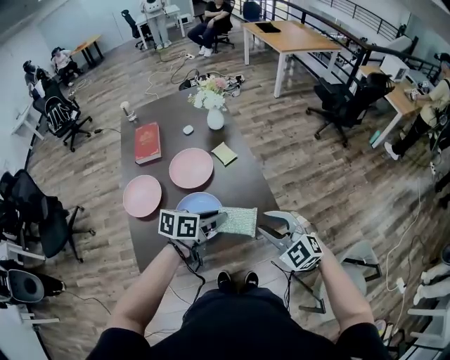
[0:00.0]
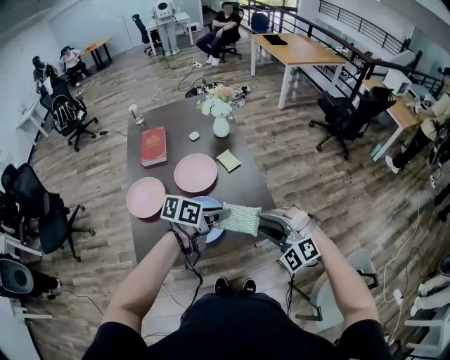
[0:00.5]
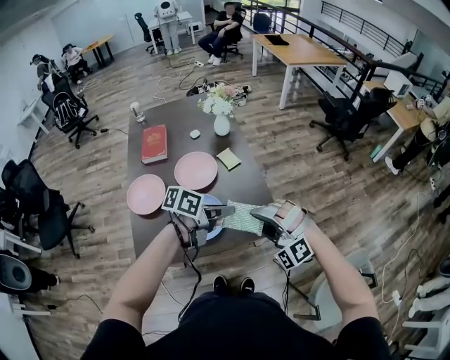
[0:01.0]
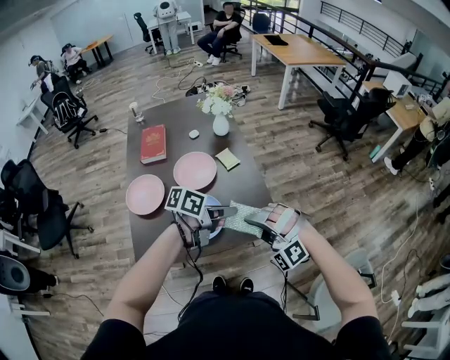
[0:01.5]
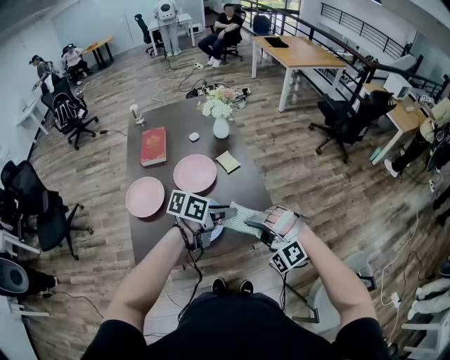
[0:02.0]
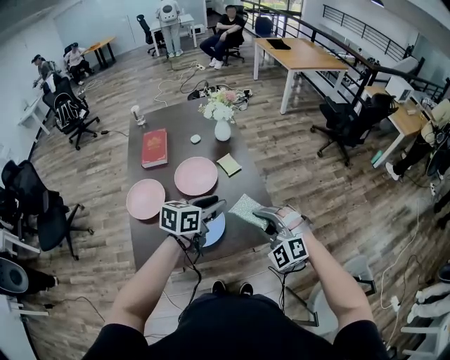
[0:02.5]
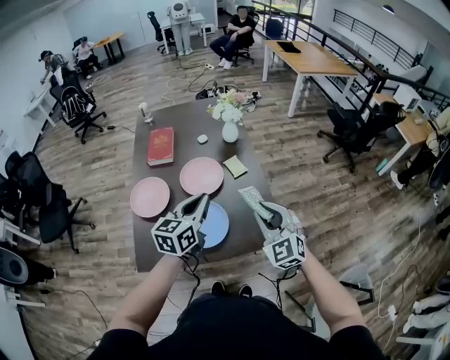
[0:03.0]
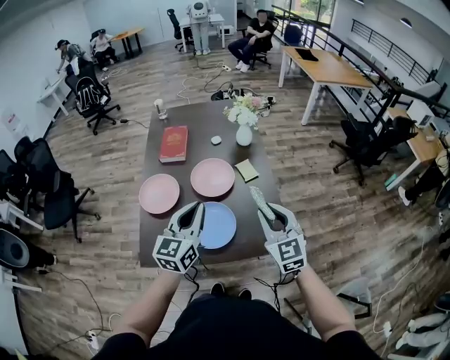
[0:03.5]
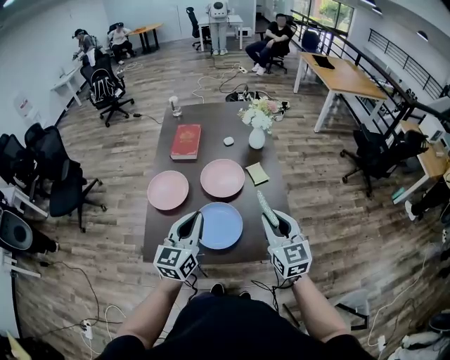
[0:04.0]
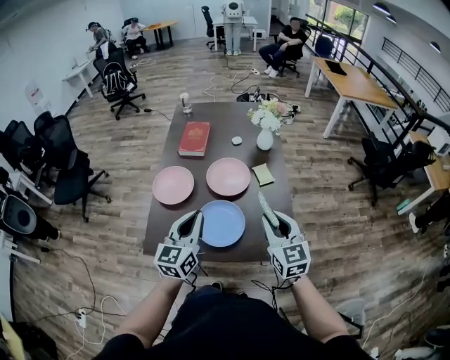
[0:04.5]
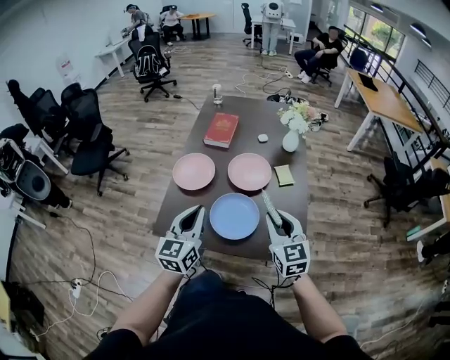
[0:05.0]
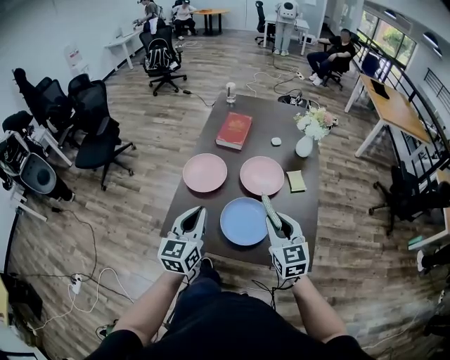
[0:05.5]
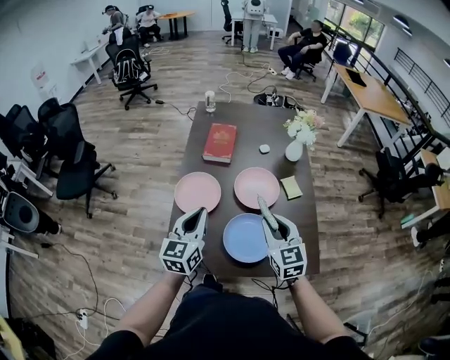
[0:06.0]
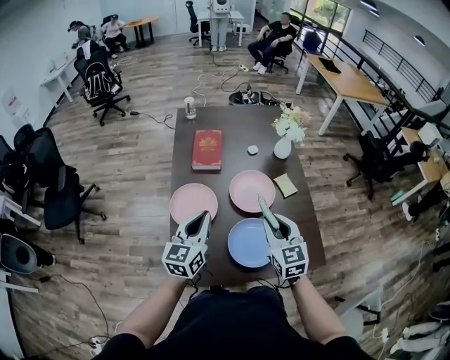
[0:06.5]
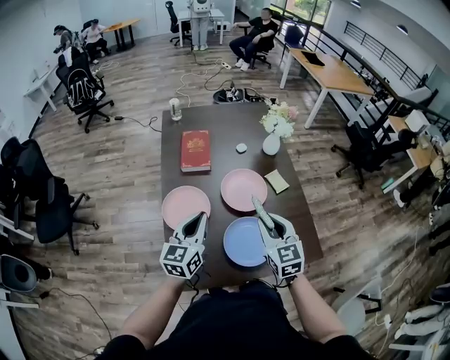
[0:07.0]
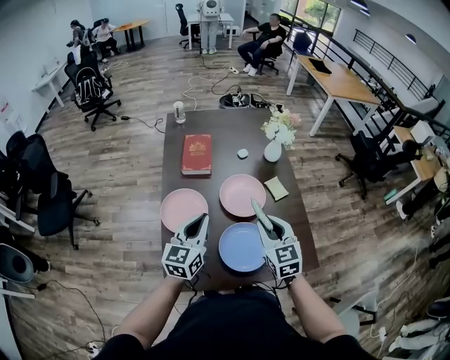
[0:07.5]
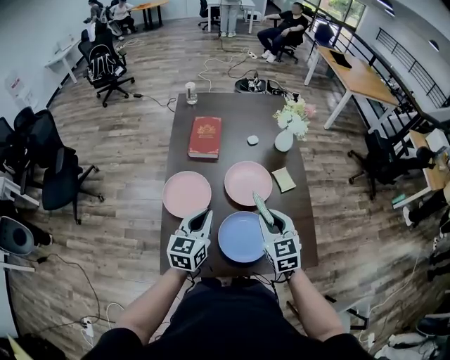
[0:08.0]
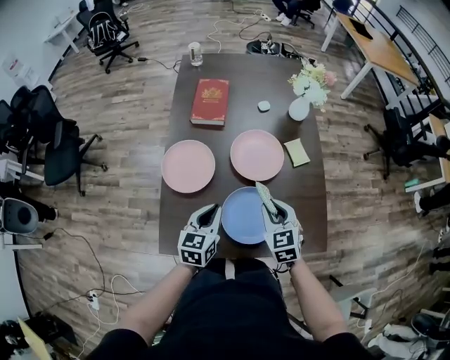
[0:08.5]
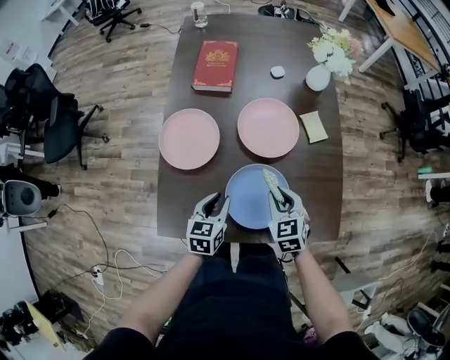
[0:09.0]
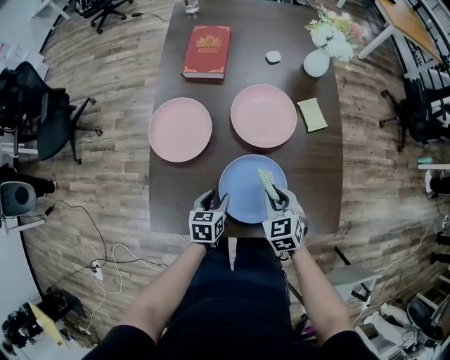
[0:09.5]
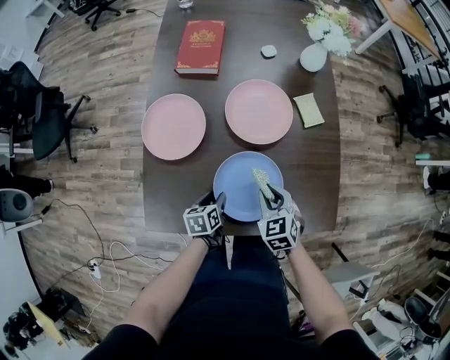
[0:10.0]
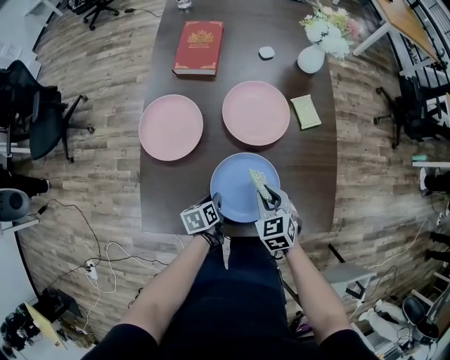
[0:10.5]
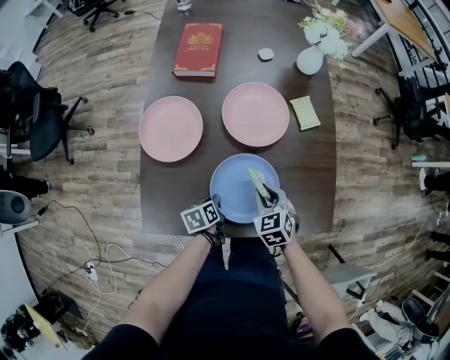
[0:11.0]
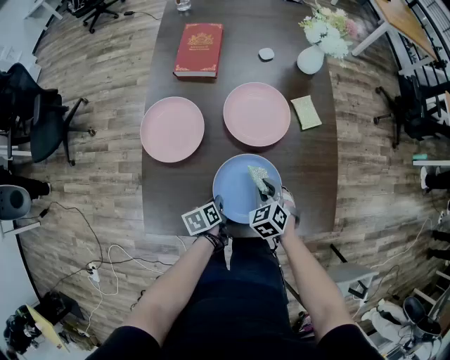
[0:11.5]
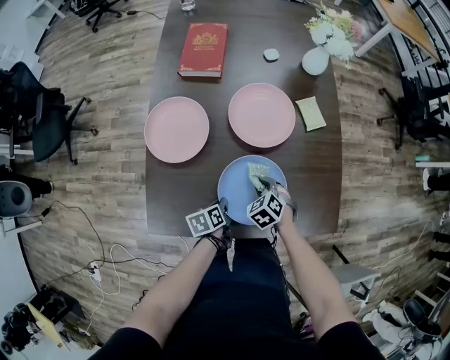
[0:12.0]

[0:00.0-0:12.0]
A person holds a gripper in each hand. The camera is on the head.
0:00.0 to 0:02.0: The right gripper twists some 50 degrees counterclockwise, seen from behind, and opens and closes again.
0:02.0 to 0:04.0: The right gripper shifts by about 10 cm, and twists about 80 degrees clockwise, seen from behind.
0:04.0 to 0:06.0: The right gripper shifts by about 20 cm.
0:06.0 to 0:08.0: The right gripper changes place by approximately 5 cm.
0:08.0 to 0:10.0: The right gripper shifts about 25 cm downward, and turns by some 20 degrees.
0:10.0 to 0:12.0: The right gripper is displaced downward by approximately 10 cm, and turns by roughly 20 degrees.

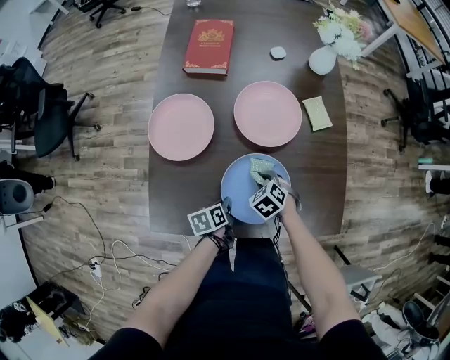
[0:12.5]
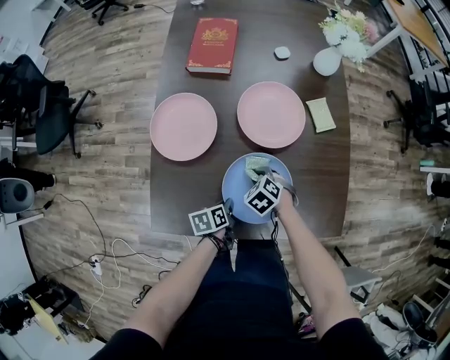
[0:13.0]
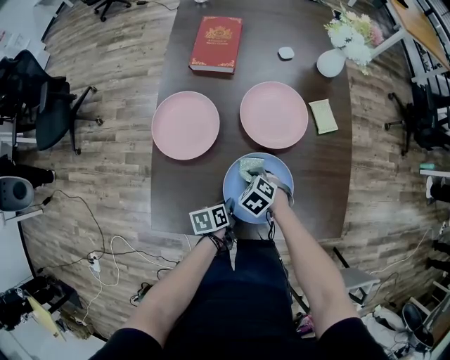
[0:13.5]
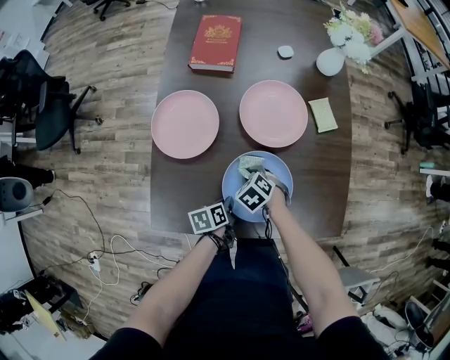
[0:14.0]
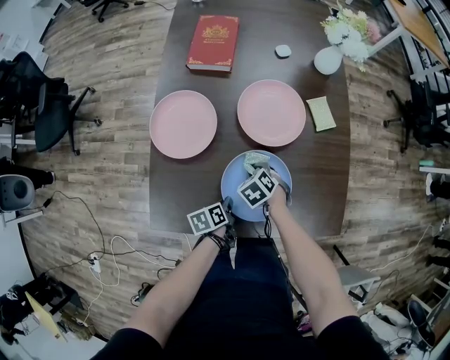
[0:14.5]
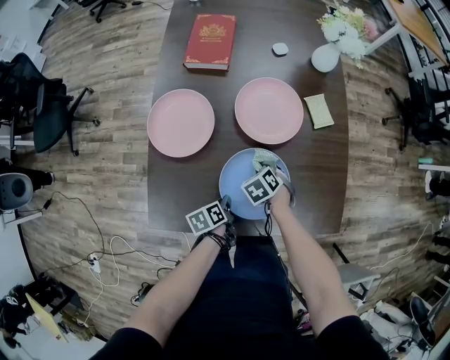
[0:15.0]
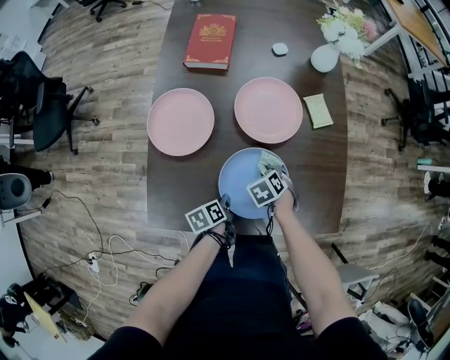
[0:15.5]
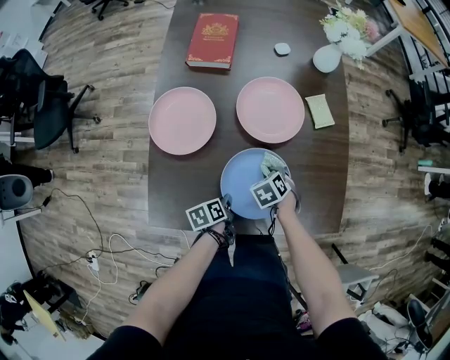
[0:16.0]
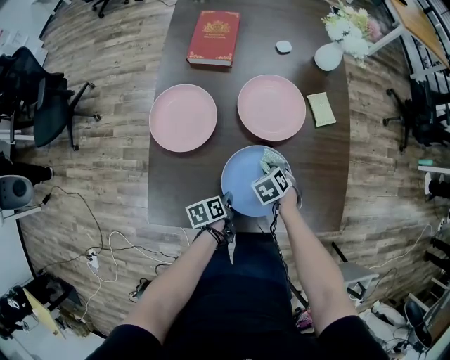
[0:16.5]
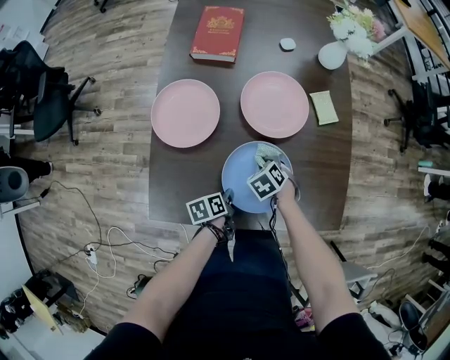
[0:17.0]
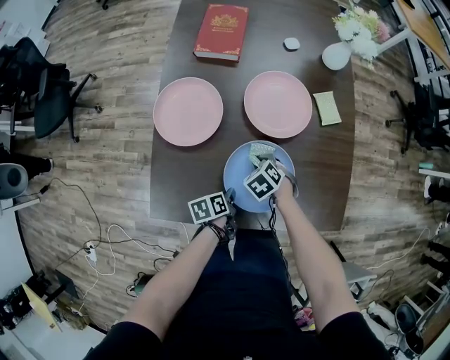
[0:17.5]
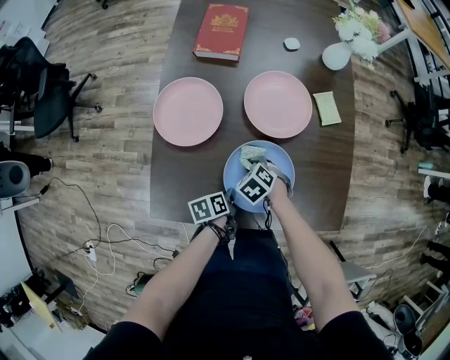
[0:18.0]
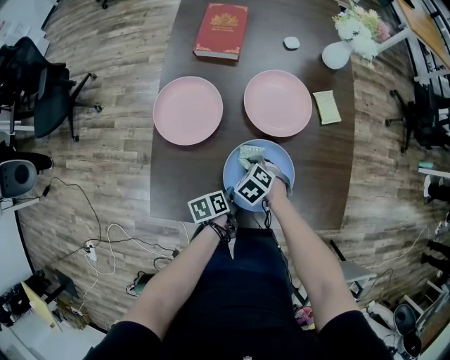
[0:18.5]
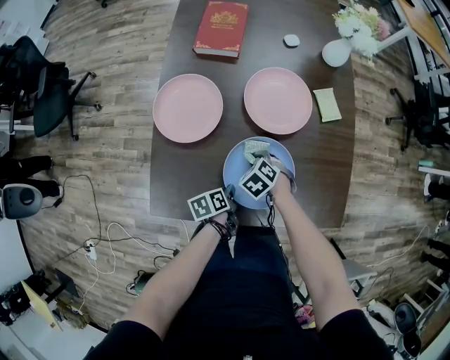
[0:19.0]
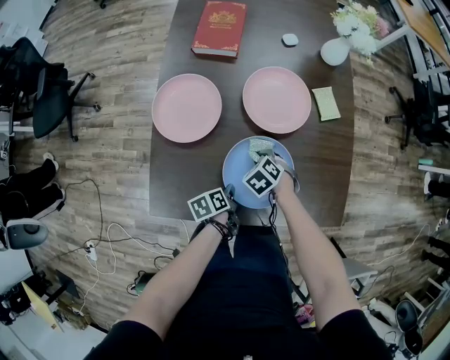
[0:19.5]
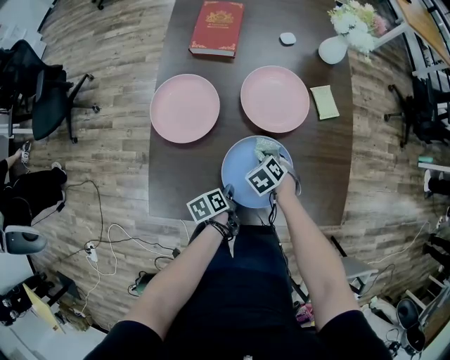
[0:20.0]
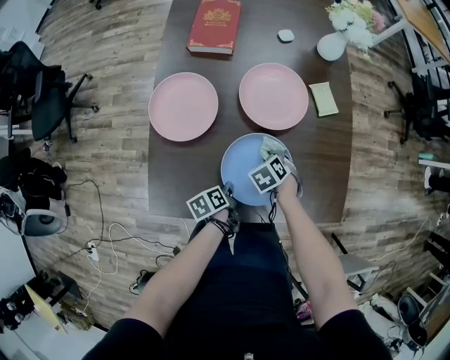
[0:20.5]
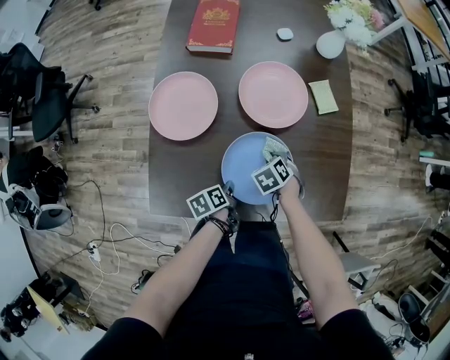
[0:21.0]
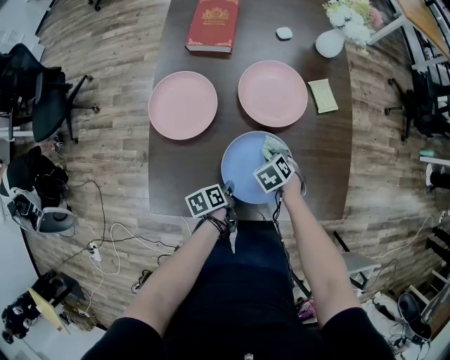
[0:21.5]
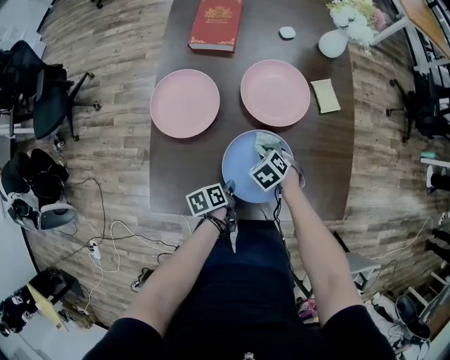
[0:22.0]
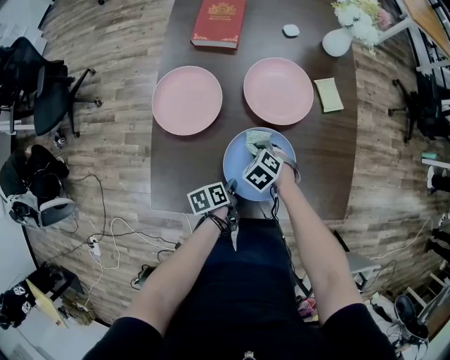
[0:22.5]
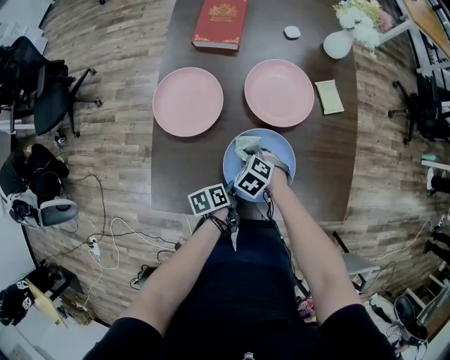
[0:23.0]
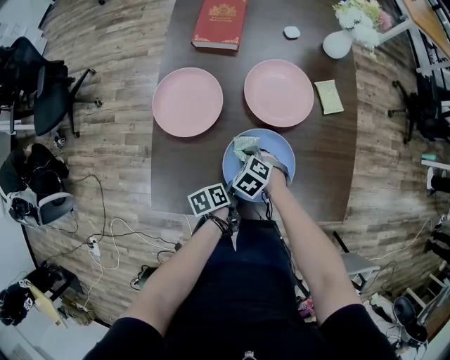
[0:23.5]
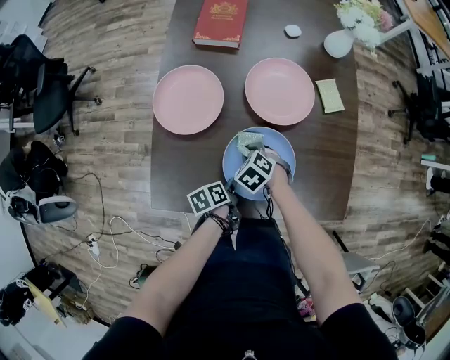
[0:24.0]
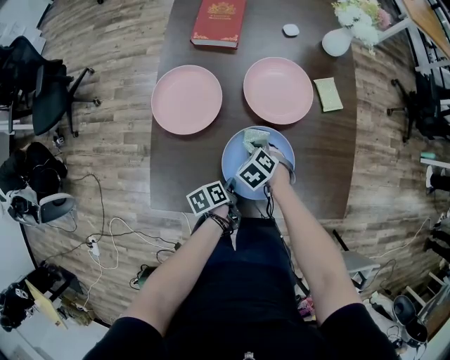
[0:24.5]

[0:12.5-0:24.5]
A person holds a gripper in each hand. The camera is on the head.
0:14.5 to 0:16.5: The right gripper moves some 5 cm.
0:16.5 to 0:18.5: The right gripper shifts by approximately 10 cm, and changes its angle by some 20 degrees.
0:18.5 to 0:20.5: The right gripper shifts by roughly 10 cm.
0:20.5 to 0:22.5: The right gripper shifts by some 5 cm.

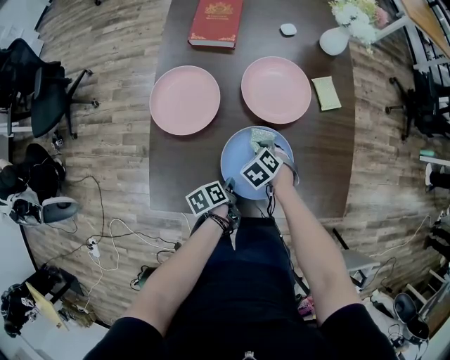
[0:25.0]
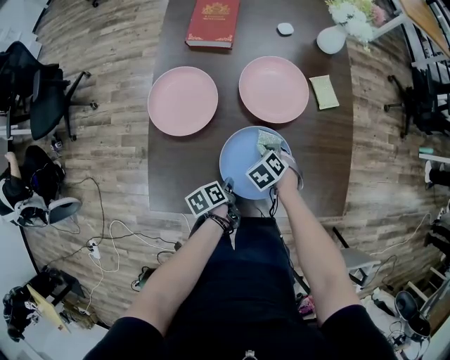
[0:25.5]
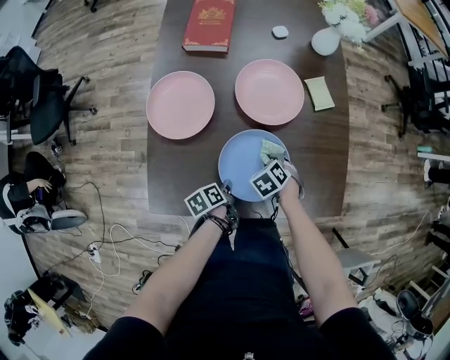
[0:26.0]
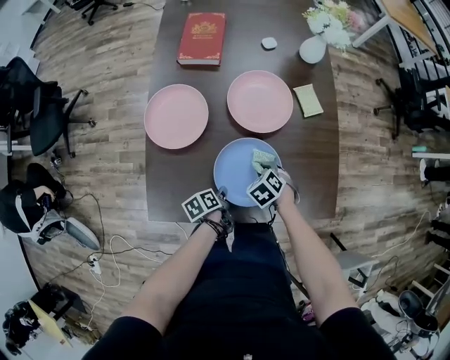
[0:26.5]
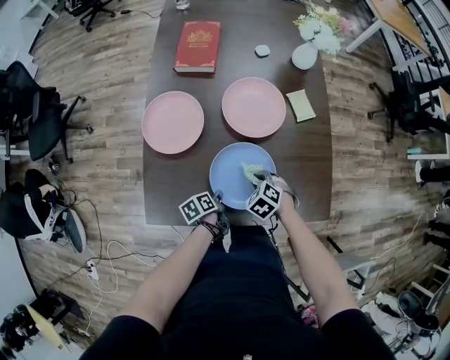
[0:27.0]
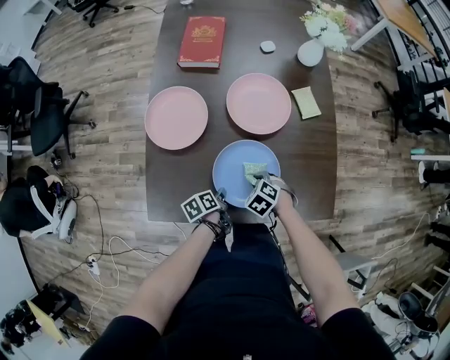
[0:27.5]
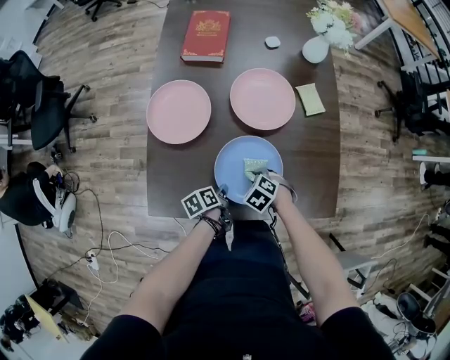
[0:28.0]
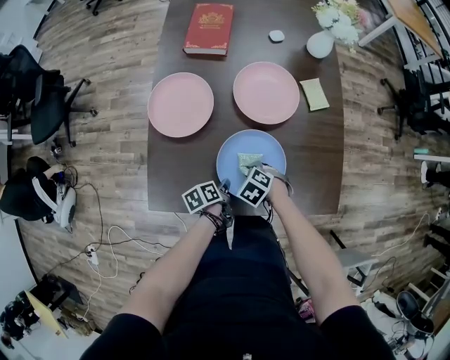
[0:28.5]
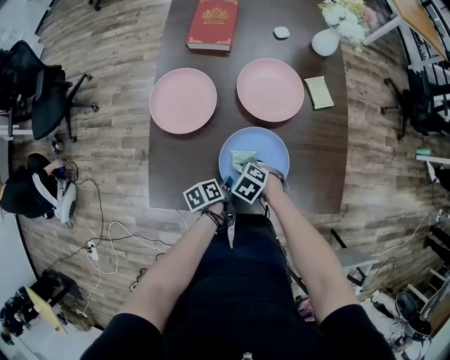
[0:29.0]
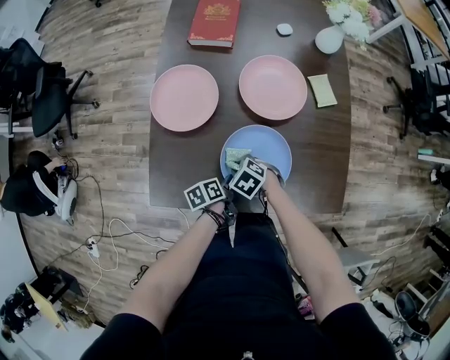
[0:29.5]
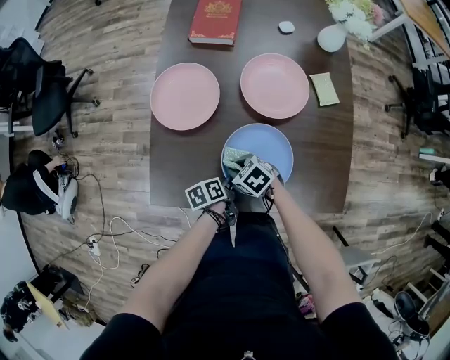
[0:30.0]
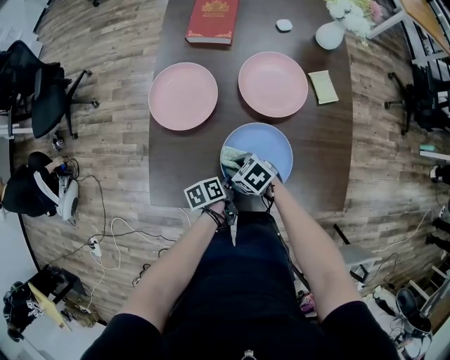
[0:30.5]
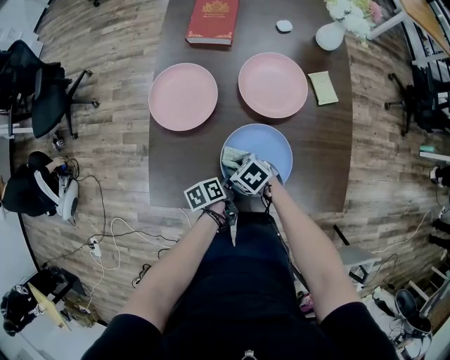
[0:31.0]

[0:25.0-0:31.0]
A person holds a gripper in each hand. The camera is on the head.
0:25.0 to 0:27.0: The right gripper ends up some 10 cm from where it was.
0:27.0 to 0:29.0: The right gripper ends up some 10 cm from where it was.
